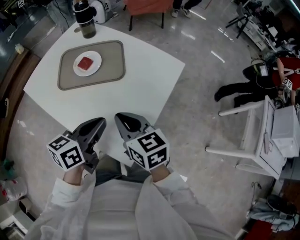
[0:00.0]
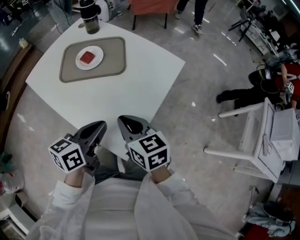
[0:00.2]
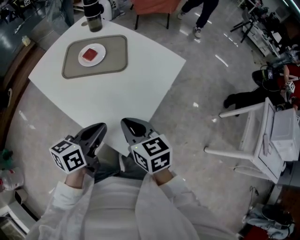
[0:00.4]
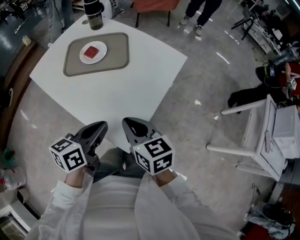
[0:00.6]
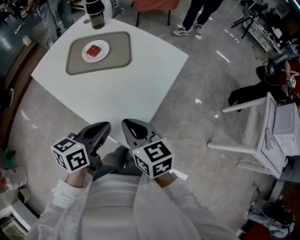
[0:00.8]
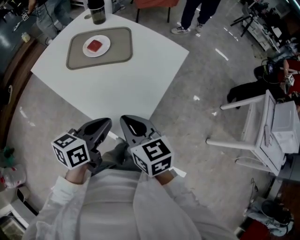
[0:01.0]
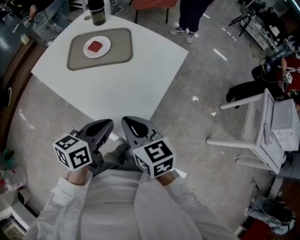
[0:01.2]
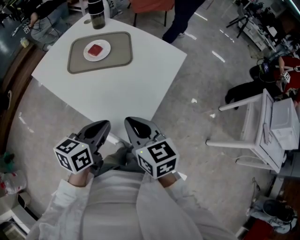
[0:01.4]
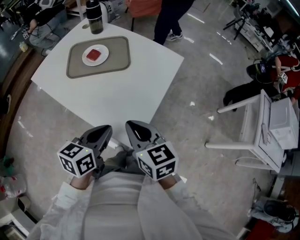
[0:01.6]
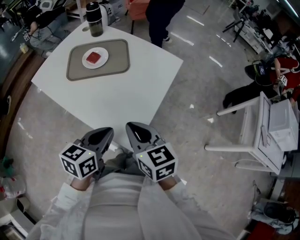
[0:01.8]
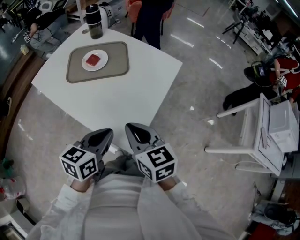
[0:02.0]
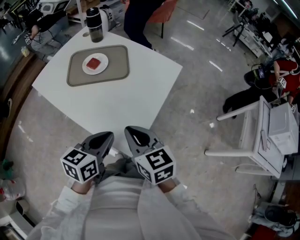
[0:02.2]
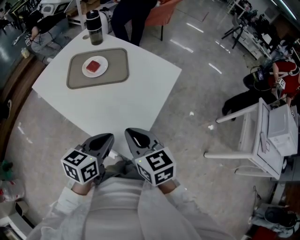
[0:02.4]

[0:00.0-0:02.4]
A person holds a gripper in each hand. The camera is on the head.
0:00.0 to 0:01.2: Both grippers move backward, roughly 10 cm.
0:01.2 to 0:02.4: The grippers stay close to where they were, moving slightly.

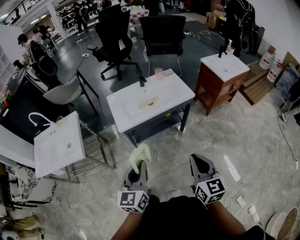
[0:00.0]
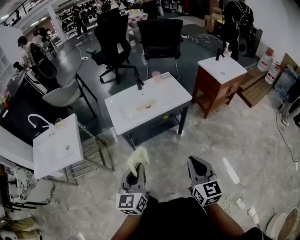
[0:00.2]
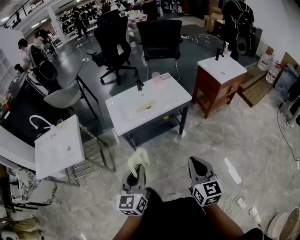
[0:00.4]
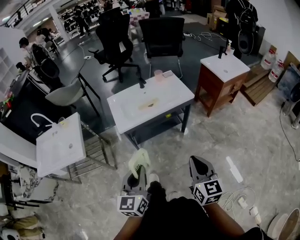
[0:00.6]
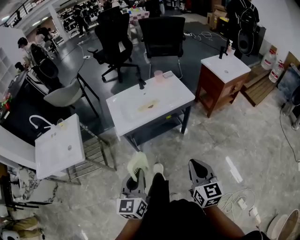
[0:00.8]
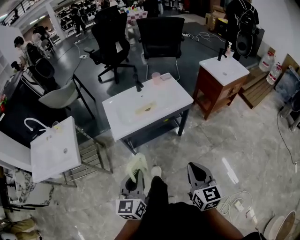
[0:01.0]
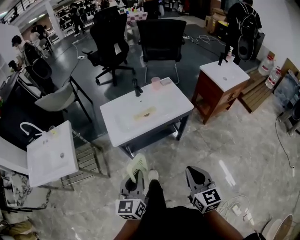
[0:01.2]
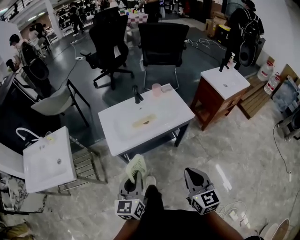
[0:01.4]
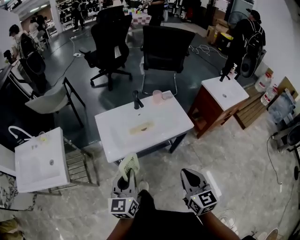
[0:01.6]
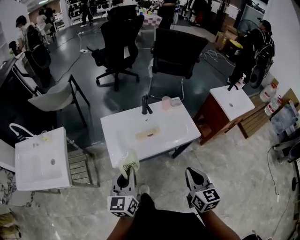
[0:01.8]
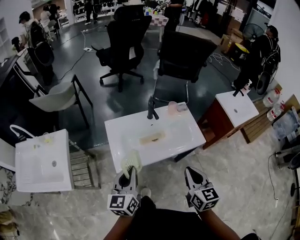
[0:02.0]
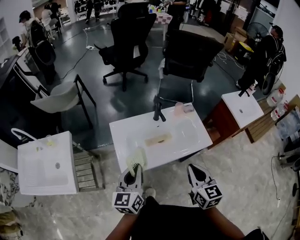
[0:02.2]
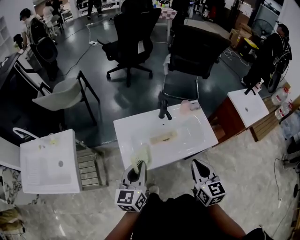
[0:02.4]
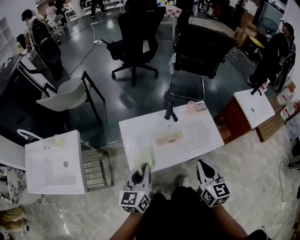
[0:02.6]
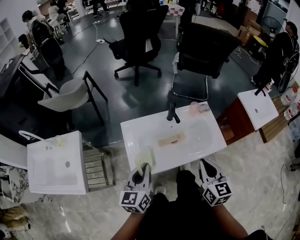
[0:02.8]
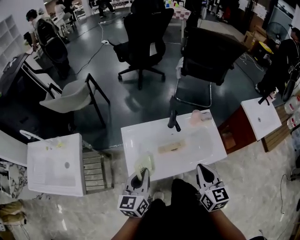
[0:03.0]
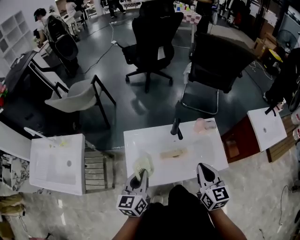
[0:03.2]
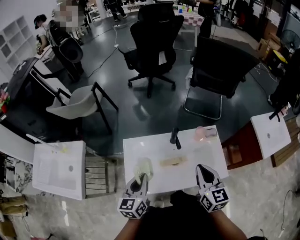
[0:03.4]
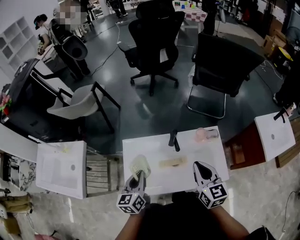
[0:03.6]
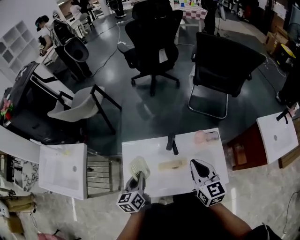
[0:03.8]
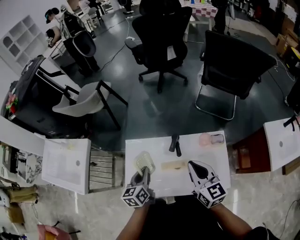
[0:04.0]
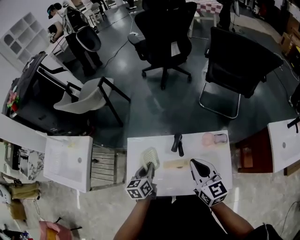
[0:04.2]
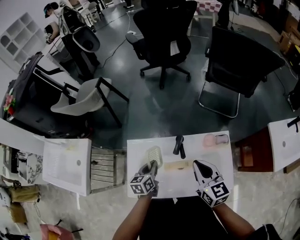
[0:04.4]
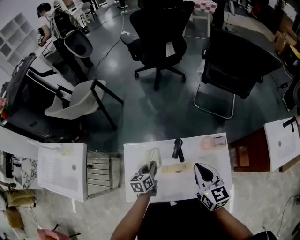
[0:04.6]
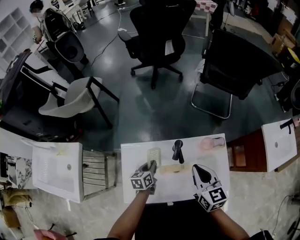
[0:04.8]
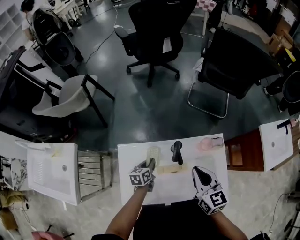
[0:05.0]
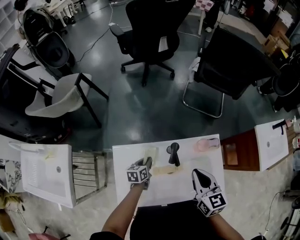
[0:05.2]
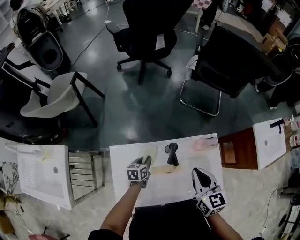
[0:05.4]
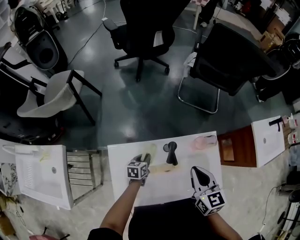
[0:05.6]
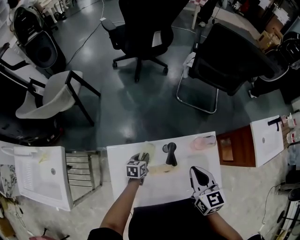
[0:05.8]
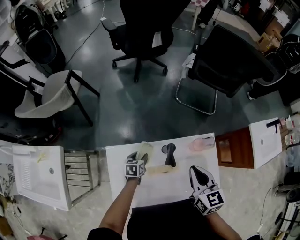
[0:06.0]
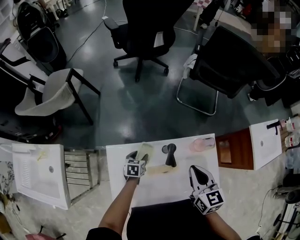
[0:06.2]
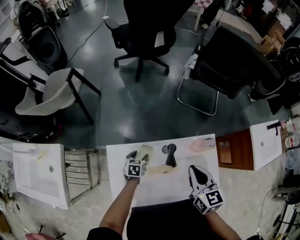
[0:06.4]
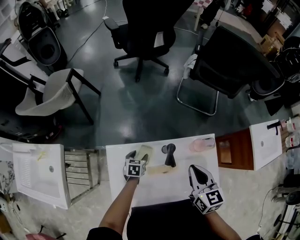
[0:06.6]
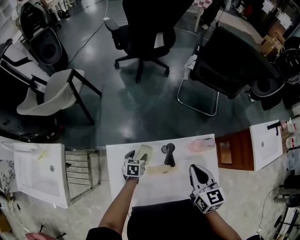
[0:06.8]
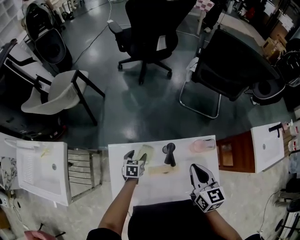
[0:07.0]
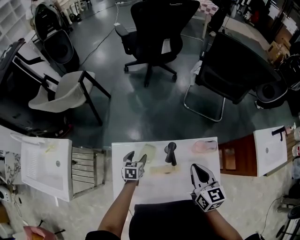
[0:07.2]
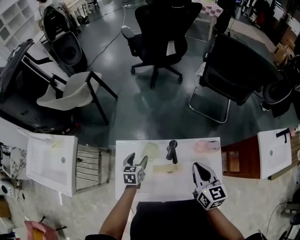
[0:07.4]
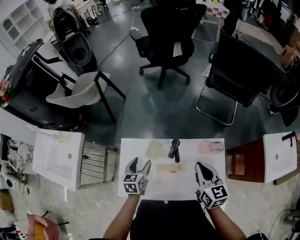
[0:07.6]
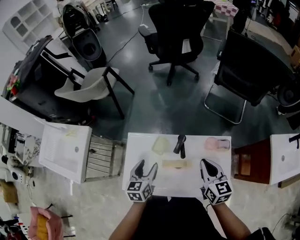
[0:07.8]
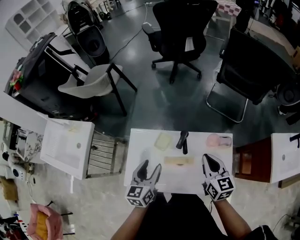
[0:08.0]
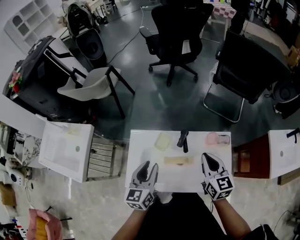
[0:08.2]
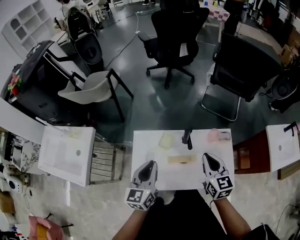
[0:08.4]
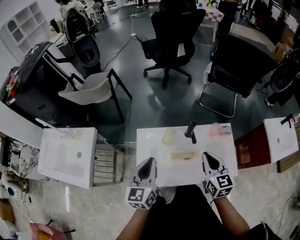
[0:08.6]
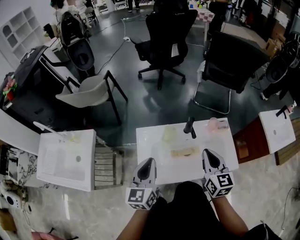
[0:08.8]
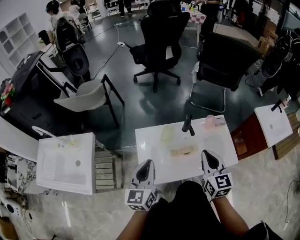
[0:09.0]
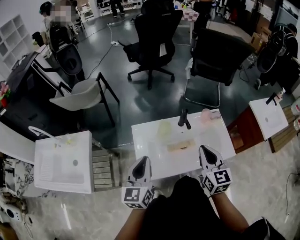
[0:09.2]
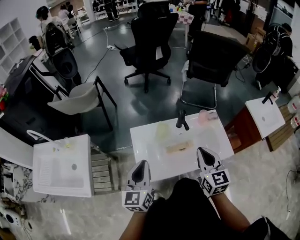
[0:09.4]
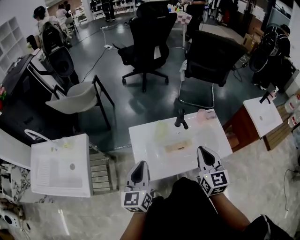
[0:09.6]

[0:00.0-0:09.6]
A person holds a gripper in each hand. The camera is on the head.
0:00.0 to 0:01.6: The two grippers go about 20 cm forward.
0:01.6 to 0:03.2: Both grippers move forward, some 30 cm.
0:03.2 to 0:04.8: The left gripper shifts about 30 cm downward and forward, and rotates roughly 30 degrees. The right gripper moves forward, roughly 20 cm.
0:04.8 to 0:06.4: The left gripper moves downward and forward, some 10 cm, rotates roughly 20 degrees, and opens up.
0:06.4 to 0:08.0: The right gripper moves roughly 5 cm, while the left gripper heads upward and backward, covering roughly 30 cm, and turns by about 40 degrees.
0:08.0 to 0:09.6: The right gripper shifts about 25 cm backward, to the left and upward, and turns by some 30 degrees, while the left gripper is displaced to the left, backward and upward by roughly 25 cm, and closes its fingers.

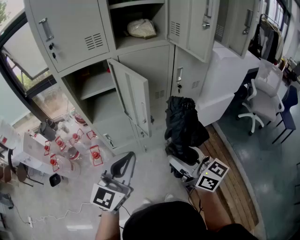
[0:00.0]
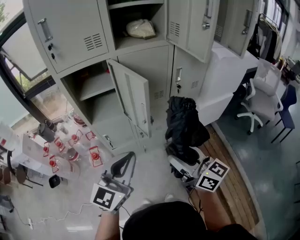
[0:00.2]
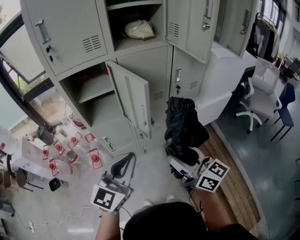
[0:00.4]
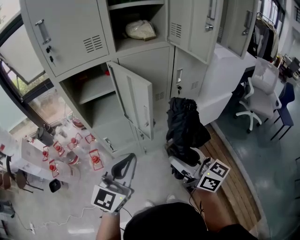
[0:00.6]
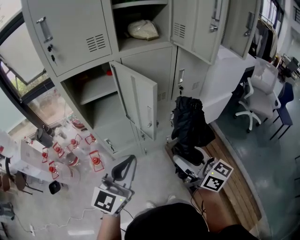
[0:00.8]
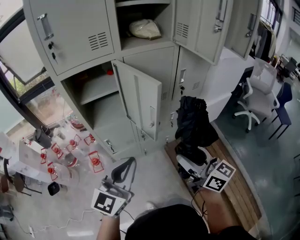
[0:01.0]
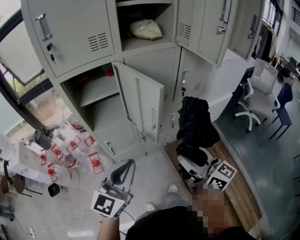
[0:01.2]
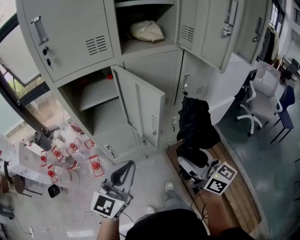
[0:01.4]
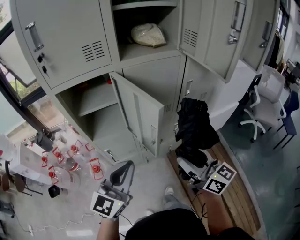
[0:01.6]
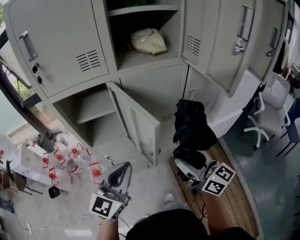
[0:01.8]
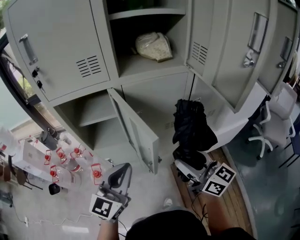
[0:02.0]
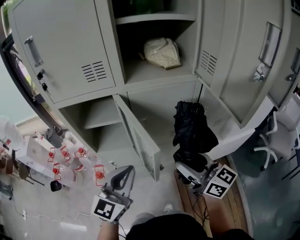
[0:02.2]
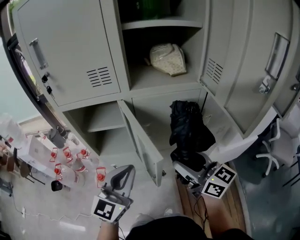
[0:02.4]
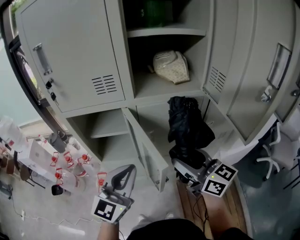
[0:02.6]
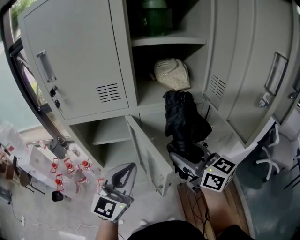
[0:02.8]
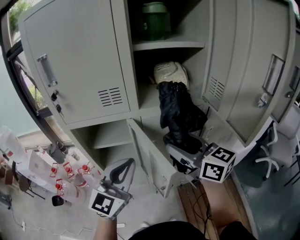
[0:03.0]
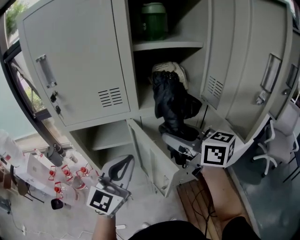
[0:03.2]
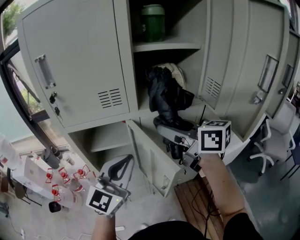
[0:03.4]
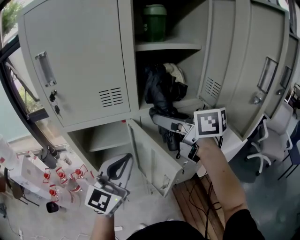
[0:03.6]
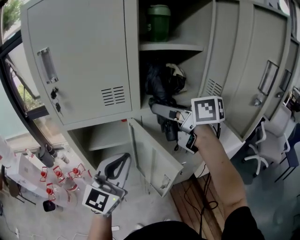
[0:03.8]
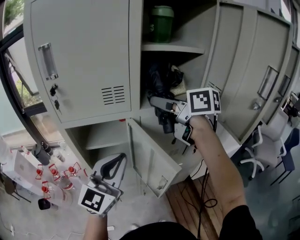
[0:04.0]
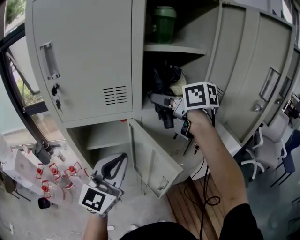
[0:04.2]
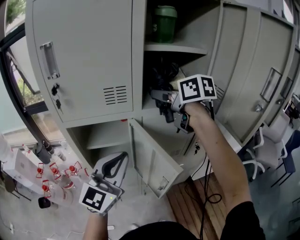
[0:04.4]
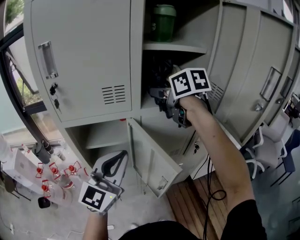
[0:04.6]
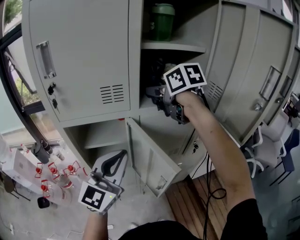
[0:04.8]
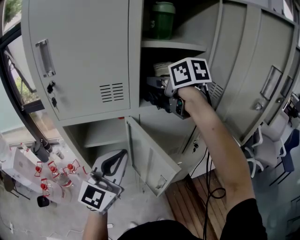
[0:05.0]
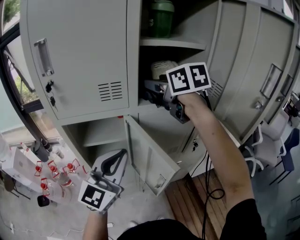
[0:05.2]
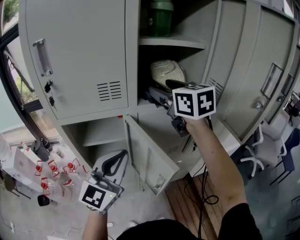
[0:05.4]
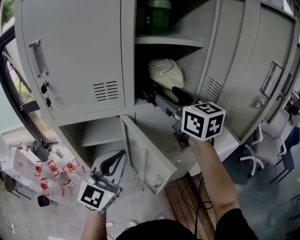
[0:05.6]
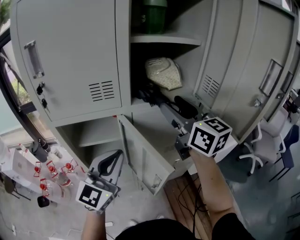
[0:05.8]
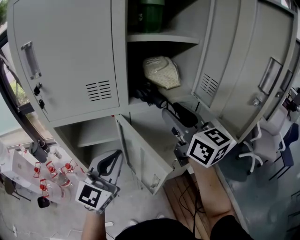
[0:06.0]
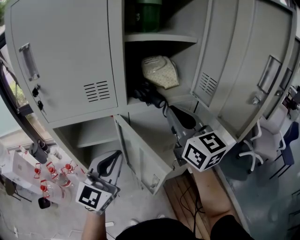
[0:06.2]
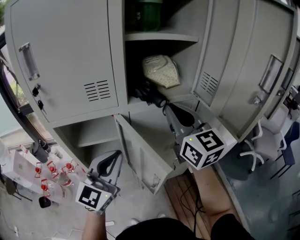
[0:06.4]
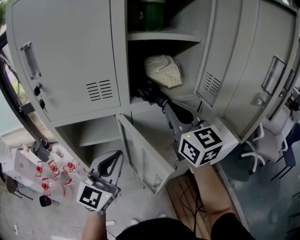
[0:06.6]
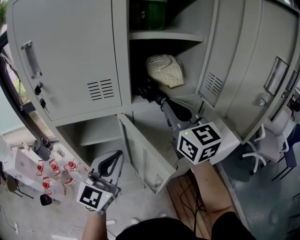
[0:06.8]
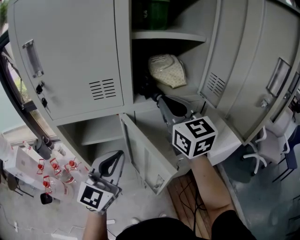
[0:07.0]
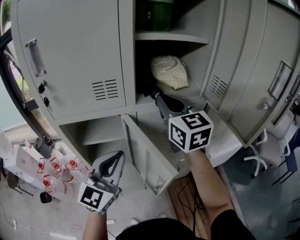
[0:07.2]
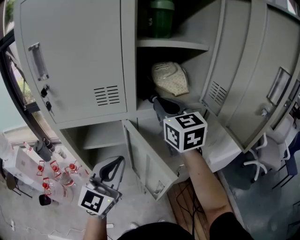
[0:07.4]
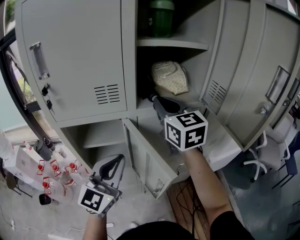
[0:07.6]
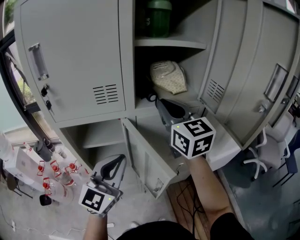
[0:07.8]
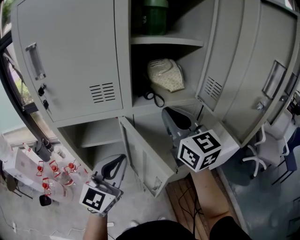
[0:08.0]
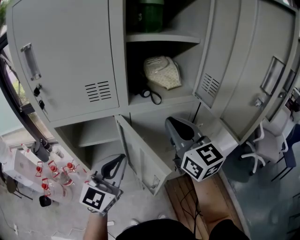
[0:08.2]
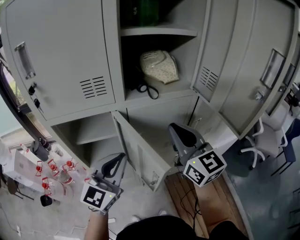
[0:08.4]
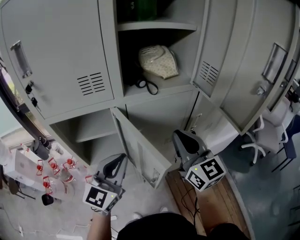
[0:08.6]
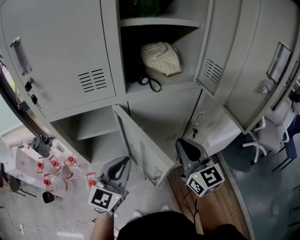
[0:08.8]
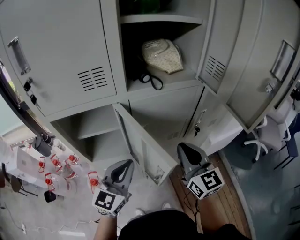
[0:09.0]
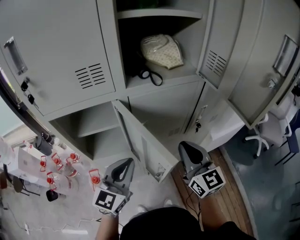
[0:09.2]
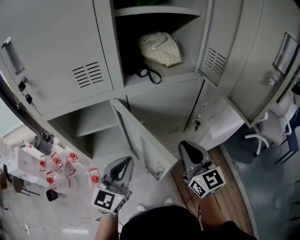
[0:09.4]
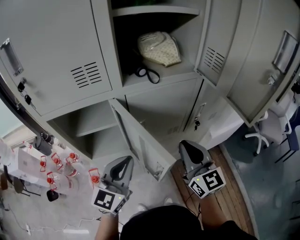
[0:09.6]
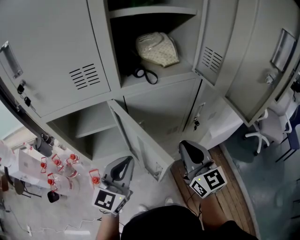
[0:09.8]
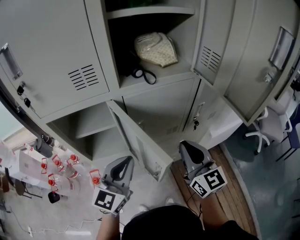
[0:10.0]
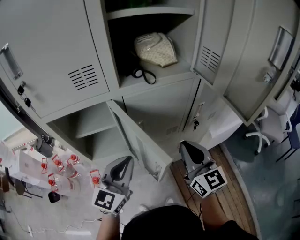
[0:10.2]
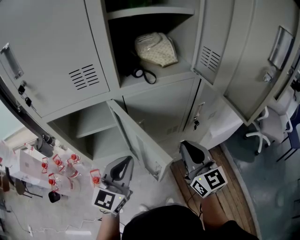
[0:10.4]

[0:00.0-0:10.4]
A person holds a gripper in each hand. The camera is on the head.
0:00.0 to 0:01.4: The right gripper is displaced forward by roughly 5 cm; the left gripper heads forward and to the left, covering some 10 cm.
0:01.4 to 0:03.0: The grippers both shift forward and upward by approximately 25 cm.
0:03.0 to 0:04.4: The right gripper travels forward and upward by about 20 cm, and rotates some 20 degrees.
0:04.4 to 0:06.0: The right gripper heads backward and to the right, covering roughly 10 cm, and changes its angle by about 30 degrees.
0:06.0 to 0:07.4: The right gripper heads forward and to the left, covering some 10 cm, and closes up.
0:07.4 to 0:09.0: The right gripper goes roughly 25 cm downward, backward and to the right. Meanwhile the left gripper goes roughly 10 cm downward.
0:09.0 to 0:10.4: There are only small adjustments of the grippers.

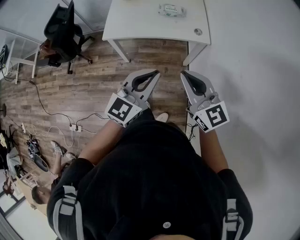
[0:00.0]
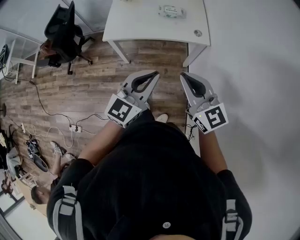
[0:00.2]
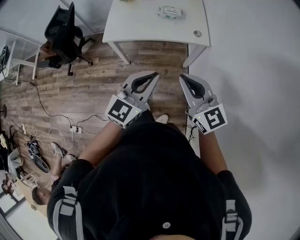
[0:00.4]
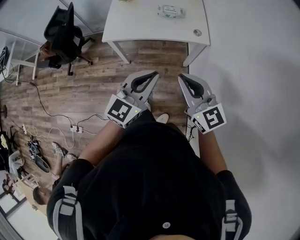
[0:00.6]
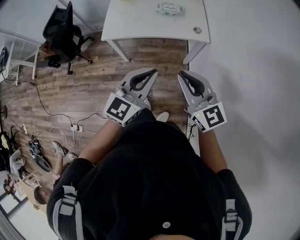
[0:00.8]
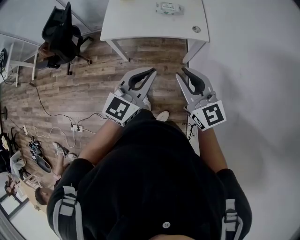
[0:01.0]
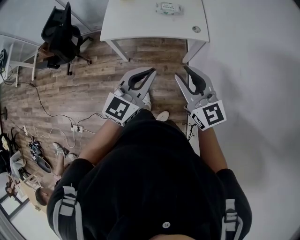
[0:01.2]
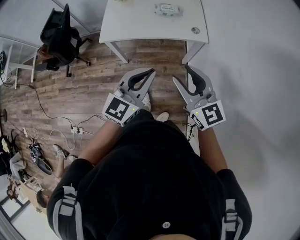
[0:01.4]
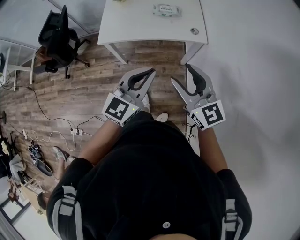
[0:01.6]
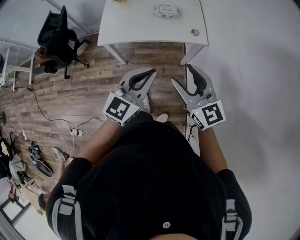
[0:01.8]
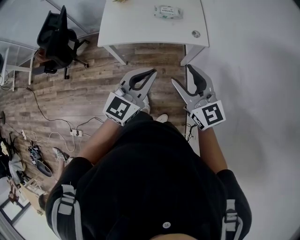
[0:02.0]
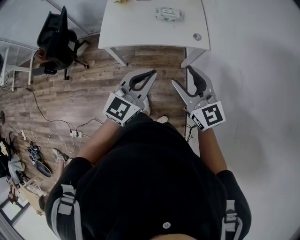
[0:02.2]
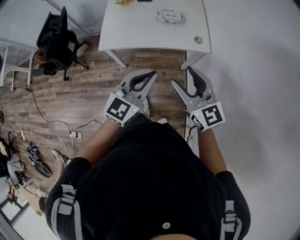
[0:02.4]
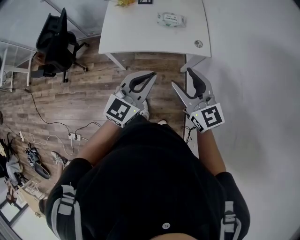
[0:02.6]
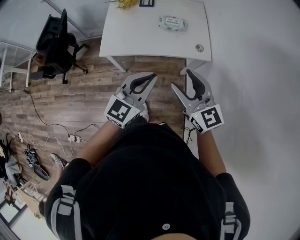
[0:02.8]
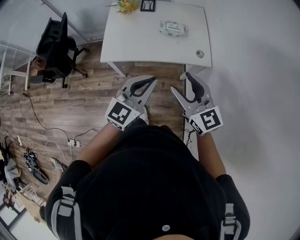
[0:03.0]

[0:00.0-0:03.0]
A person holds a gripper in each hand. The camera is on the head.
0:00.0 to 0:01.6: The right gripper opens.
0:01.6 to 0:03.0: Both grippers move forward and to the left, roughly 15 cm.
